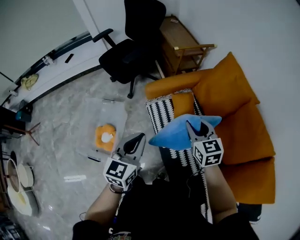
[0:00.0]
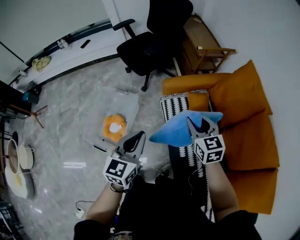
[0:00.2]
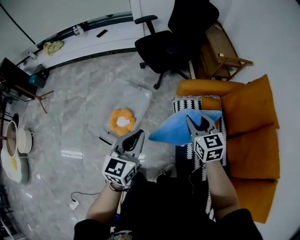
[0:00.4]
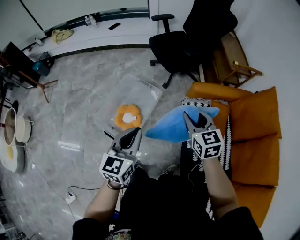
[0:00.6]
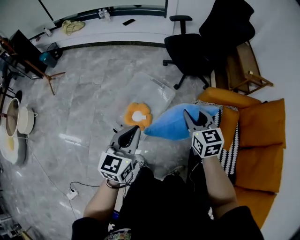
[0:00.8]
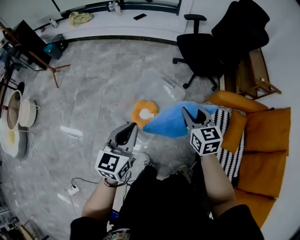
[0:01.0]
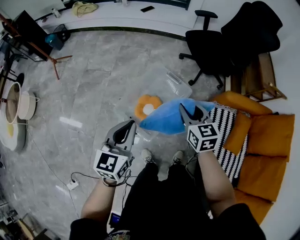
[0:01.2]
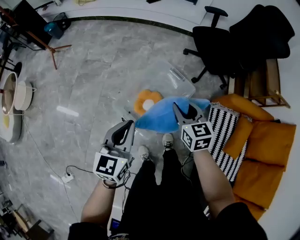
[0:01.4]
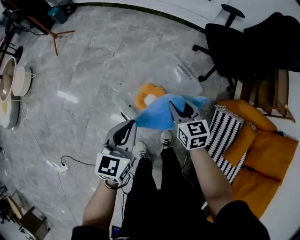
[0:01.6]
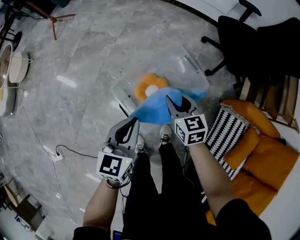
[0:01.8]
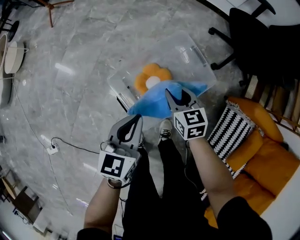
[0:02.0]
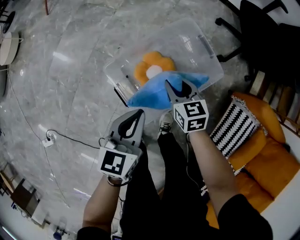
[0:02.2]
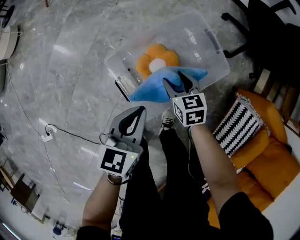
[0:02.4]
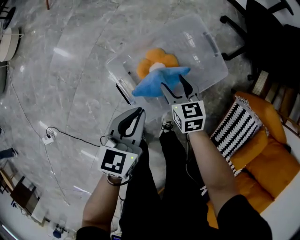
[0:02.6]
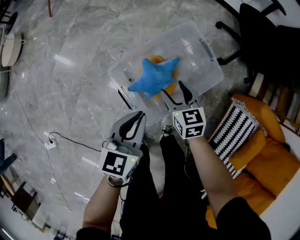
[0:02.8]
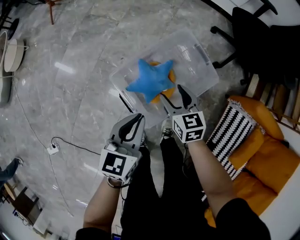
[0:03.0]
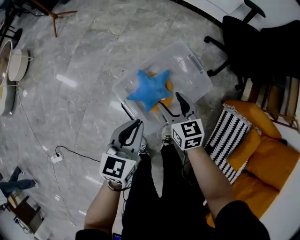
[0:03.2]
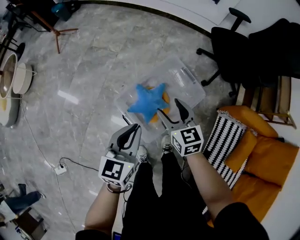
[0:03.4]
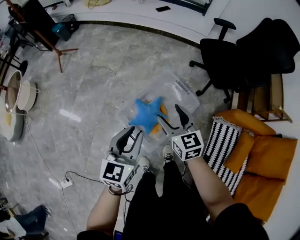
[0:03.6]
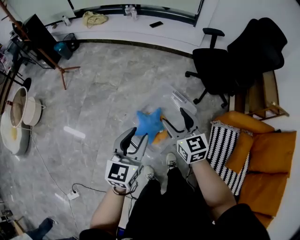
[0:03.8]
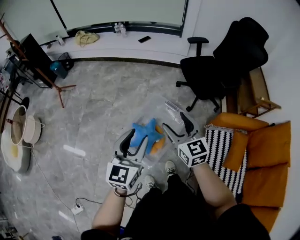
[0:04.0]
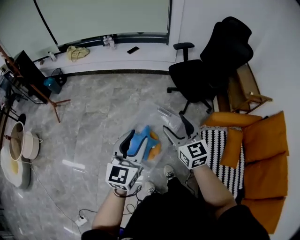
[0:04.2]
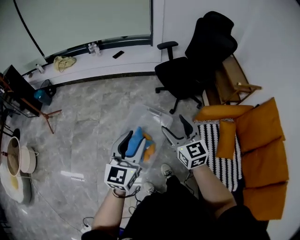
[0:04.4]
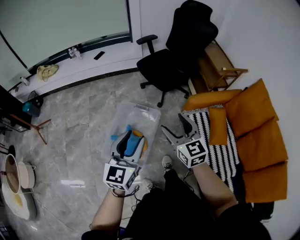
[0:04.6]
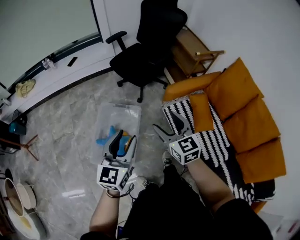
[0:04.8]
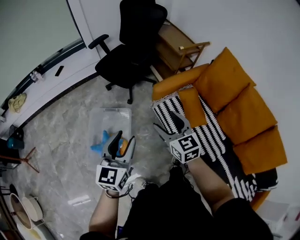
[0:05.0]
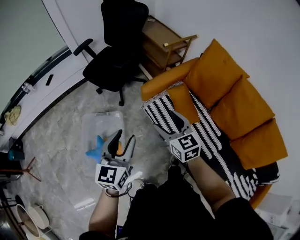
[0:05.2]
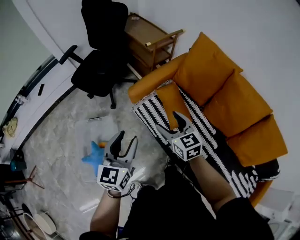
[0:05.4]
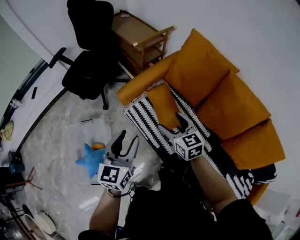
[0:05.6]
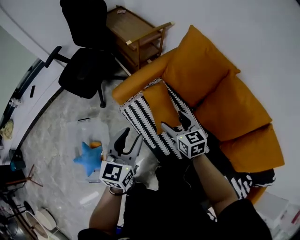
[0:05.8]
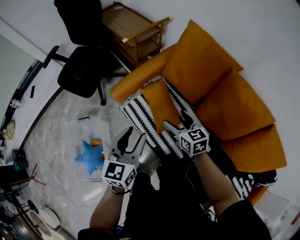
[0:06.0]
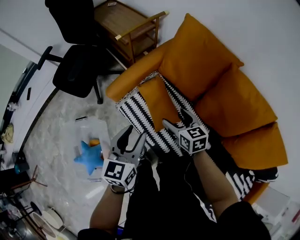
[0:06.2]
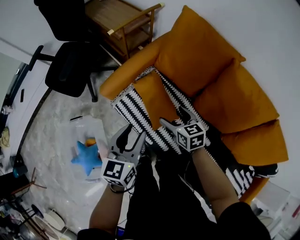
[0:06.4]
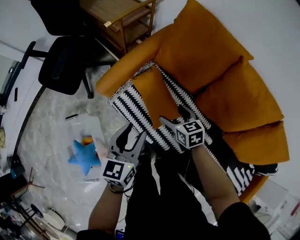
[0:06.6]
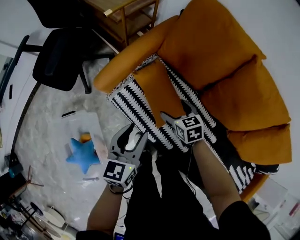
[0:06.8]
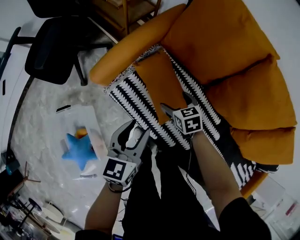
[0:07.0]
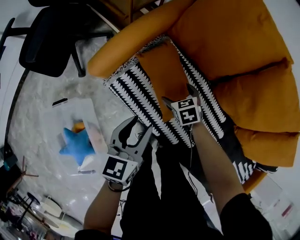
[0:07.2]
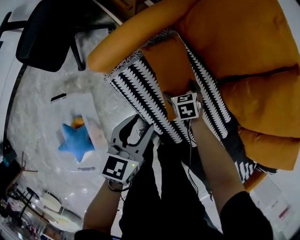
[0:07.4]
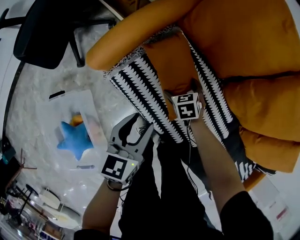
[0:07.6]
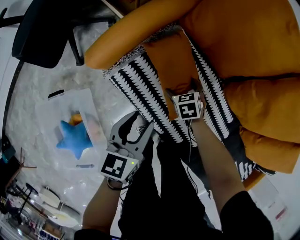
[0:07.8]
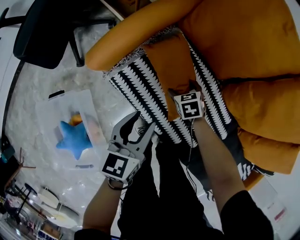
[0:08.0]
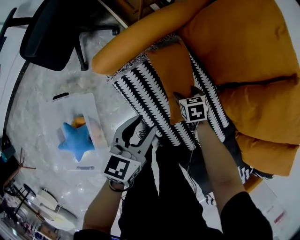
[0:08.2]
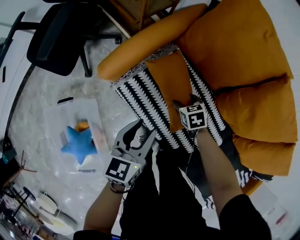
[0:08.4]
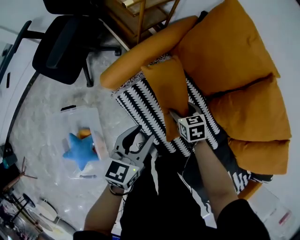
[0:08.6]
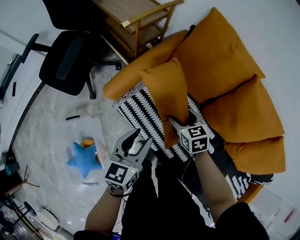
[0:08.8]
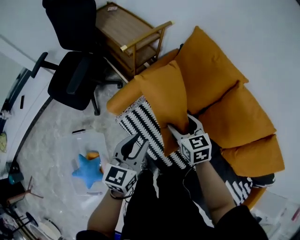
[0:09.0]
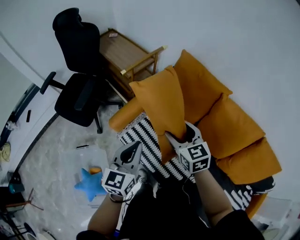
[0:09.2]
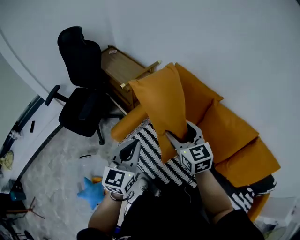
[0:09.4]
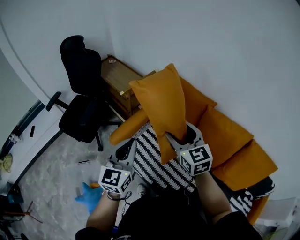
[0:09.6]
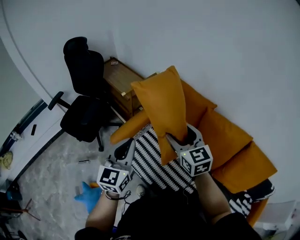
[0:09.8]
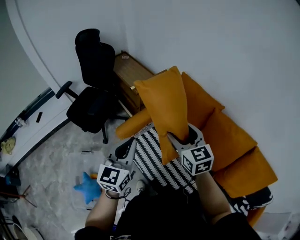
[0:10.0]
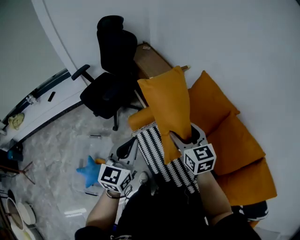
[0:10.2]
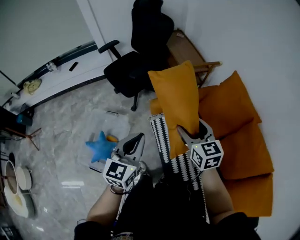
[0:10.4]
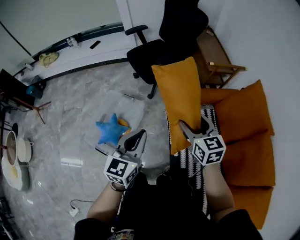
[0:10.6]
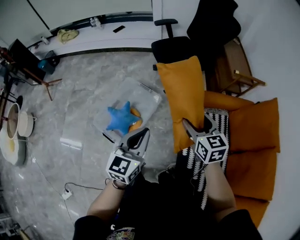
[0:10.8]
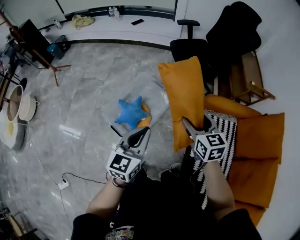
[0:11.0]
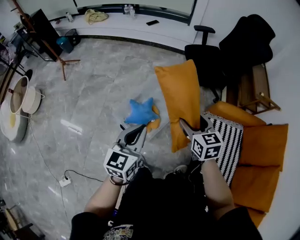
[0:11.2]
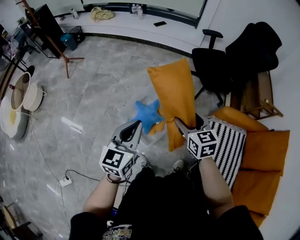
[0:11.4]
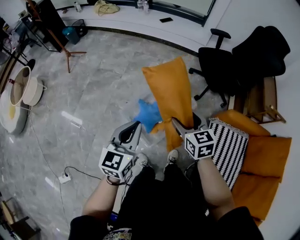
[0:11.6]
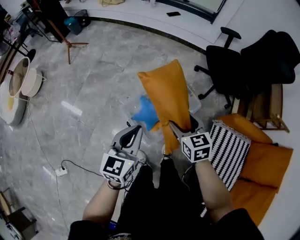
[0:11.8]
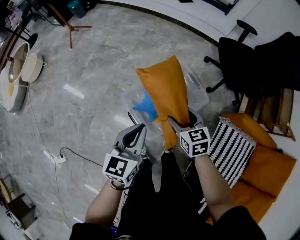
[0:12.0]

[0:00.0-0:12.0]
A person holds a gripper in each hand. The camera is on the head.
0:00.0 to 0:01.6: The pair of grippers is taken about 60 cm. The left gripper changes its angle by about 40 degrees; the right gripper rotates some 40 degrees.
0:01.6 to 0:03.0: Both grippers travel together downward, roughly 15 cm.
0:03.0 to 0:04.4: The right gripper travels upward and to the right by some 40 cm, and turns by some 40 degrees; the left gripper moves upward, about 35 cm, changes its angle by approximately 40 degrees, and opens its fingers.
0:04.4 to 0:06.0: The pair of grippers is taken approximately 60 cm. The left gripper turns by about 40 degrees, while the right gripper rotates roughly 50 degrees.
0:06.0 to 0:07.6: The two grippers go some 35 cm downward. The left gripper changes its angle by about 20 degrees, while the right gripper points its fingers roughly 40 degrees further downward.
0:07.6 to 0:09.0: The right gripper heads upward, covering some 35 cm, changes its angle by approximately 30 degrees, and closes up; the left gripper goes approximately 25 cm upward.
0:09.0 to 0:10.4: The left gripper shifts by roughly 20 cm, turns by about 30 degrees, and closes; the right gripper heads upward, covering some 20 cm, and changes its angle by about 30 degrees.
0:10.4 to 0:12.0: Both grippers are carried some 60 cm. The left gripper turns by about 50 degrees. The right gripper changes its angle by approximately 50 degrees.

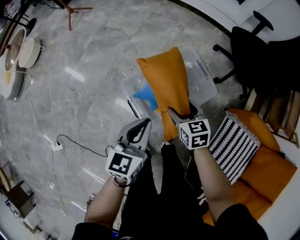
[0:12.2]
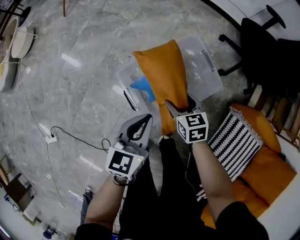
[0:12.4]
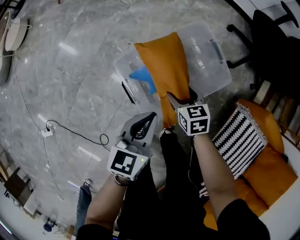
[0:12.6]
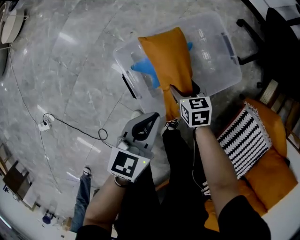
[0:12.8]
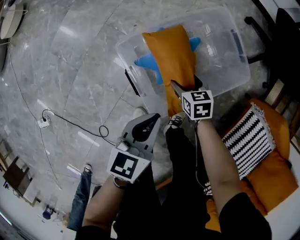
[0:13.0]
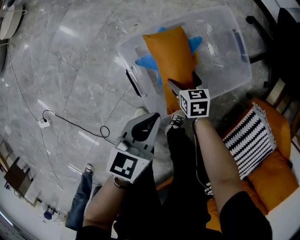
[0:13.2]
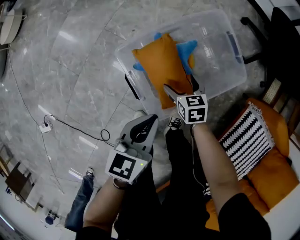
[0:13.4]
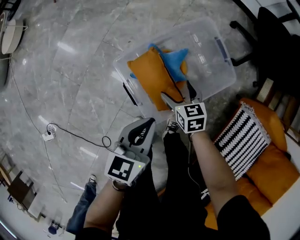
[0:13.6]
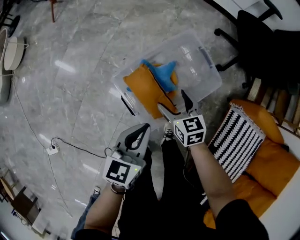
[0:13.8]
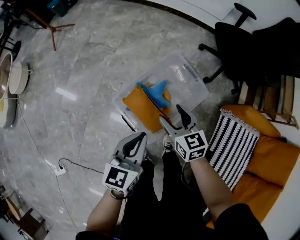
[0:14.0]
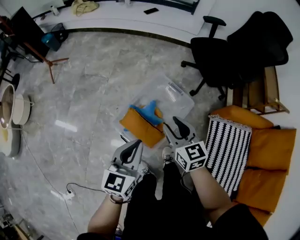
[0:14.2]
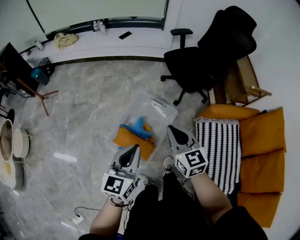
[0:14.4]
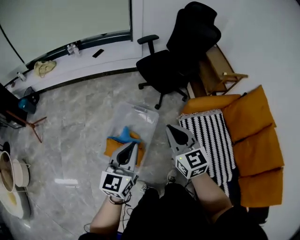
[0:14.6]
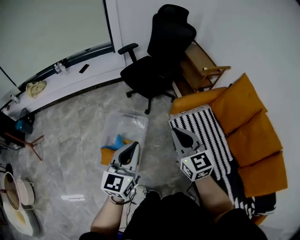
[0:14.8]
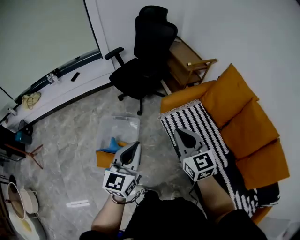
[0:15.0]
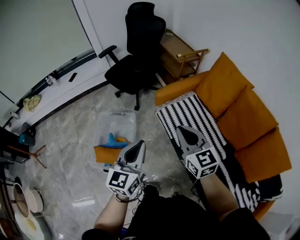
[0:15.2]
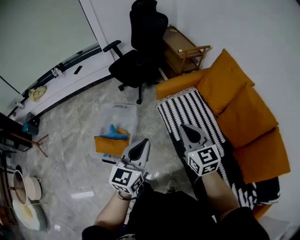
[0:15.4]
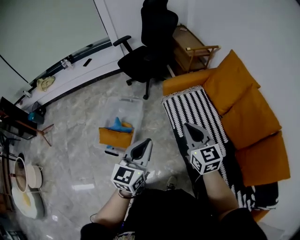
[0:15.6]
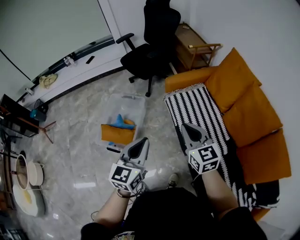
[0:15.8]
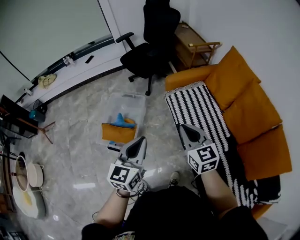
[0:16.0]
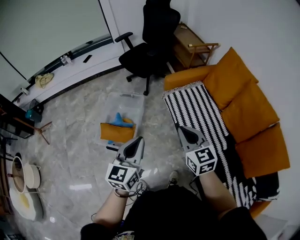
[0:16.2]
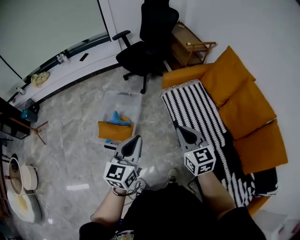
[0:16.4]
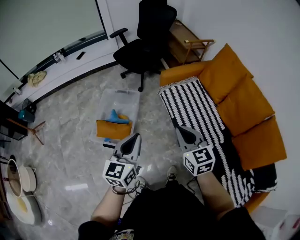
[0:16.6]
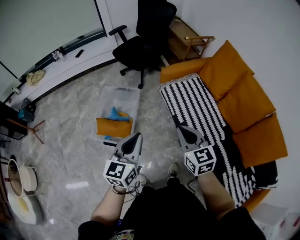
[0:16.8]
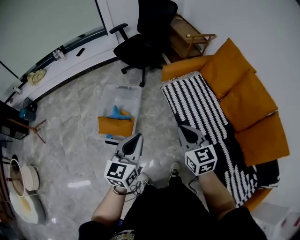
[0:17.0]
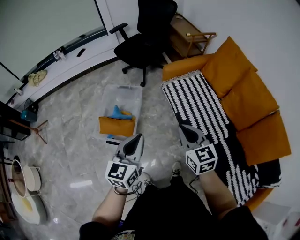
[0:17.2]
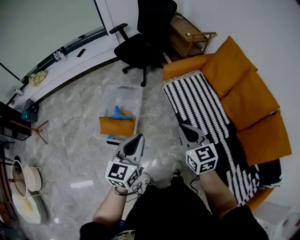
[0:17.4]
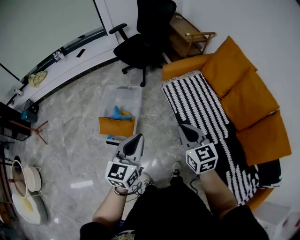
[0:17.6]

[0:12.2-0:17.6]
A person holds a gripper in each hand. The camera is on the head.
0:12.2 to 0:13.6: Both grippers move downward, roughly 20 cm.
0:13.6 to 0:15.0: The two grippers go roughly 50 cm upward. The left gripper turns by some 60 degrees. The right gripper angles its fingers upward, by some 40 degrees, and closes up.
0:15.0 to 0:16.2: The two grippers go roughly 20 cm backward.
0:16.2 to 0:17.6: There are only small adjustments of the grippers.

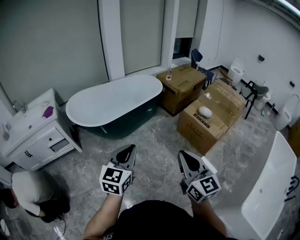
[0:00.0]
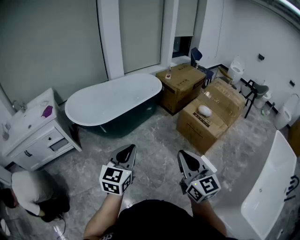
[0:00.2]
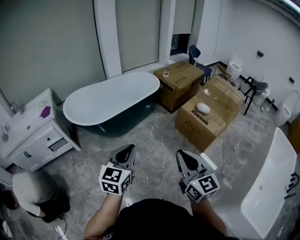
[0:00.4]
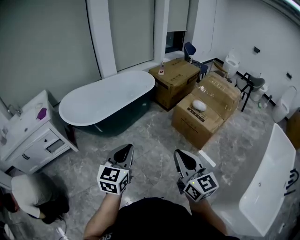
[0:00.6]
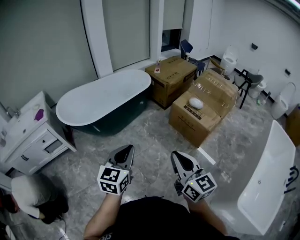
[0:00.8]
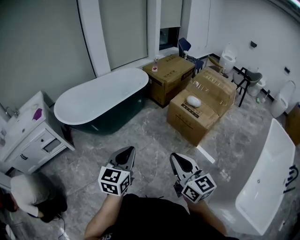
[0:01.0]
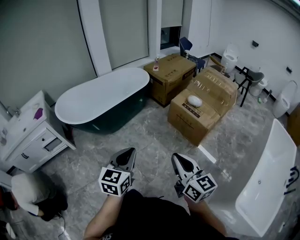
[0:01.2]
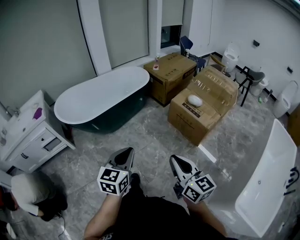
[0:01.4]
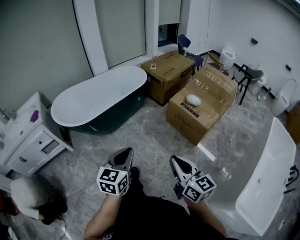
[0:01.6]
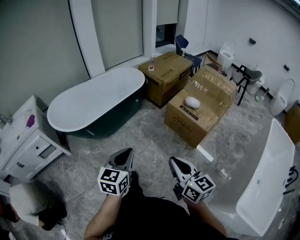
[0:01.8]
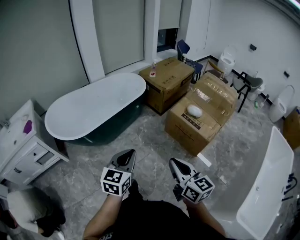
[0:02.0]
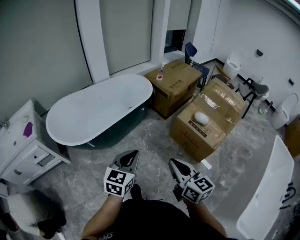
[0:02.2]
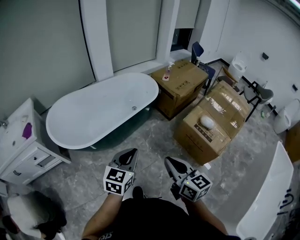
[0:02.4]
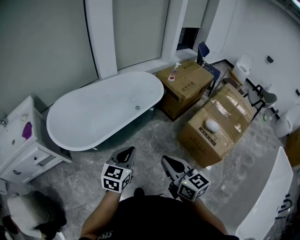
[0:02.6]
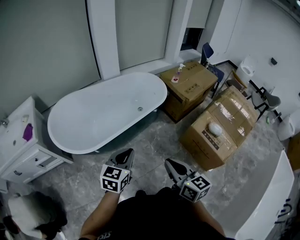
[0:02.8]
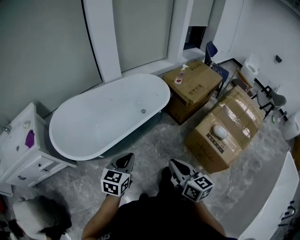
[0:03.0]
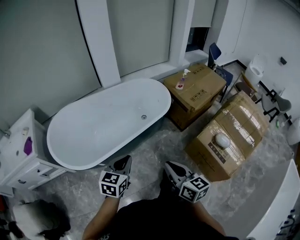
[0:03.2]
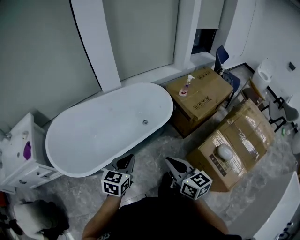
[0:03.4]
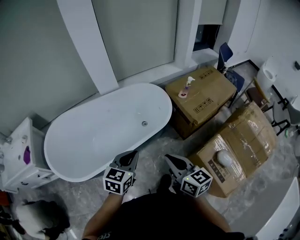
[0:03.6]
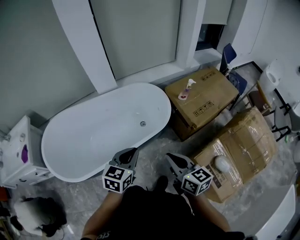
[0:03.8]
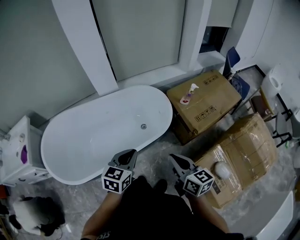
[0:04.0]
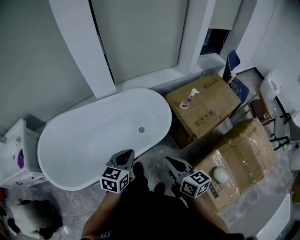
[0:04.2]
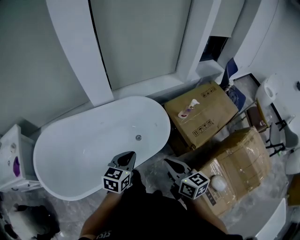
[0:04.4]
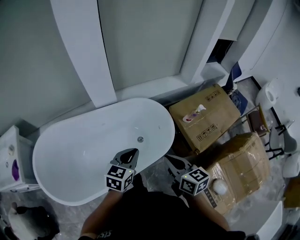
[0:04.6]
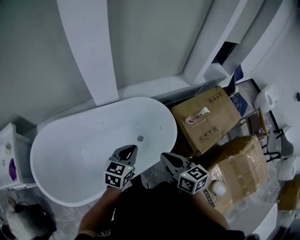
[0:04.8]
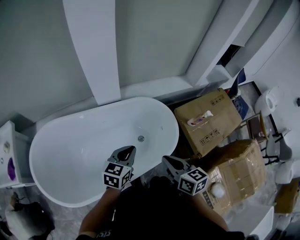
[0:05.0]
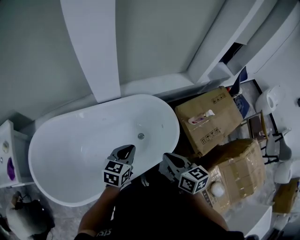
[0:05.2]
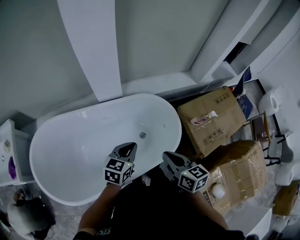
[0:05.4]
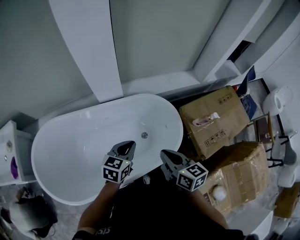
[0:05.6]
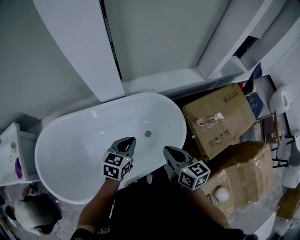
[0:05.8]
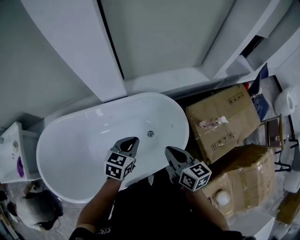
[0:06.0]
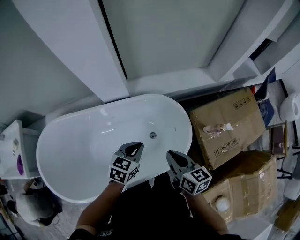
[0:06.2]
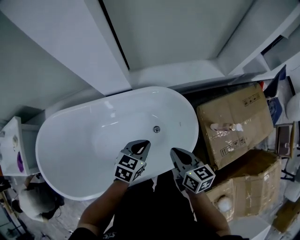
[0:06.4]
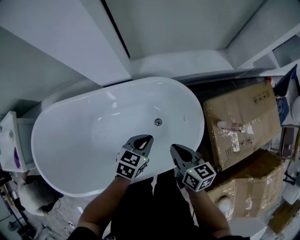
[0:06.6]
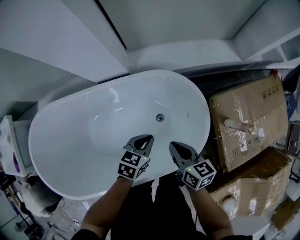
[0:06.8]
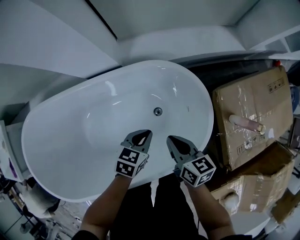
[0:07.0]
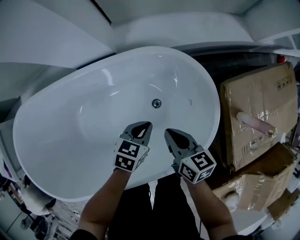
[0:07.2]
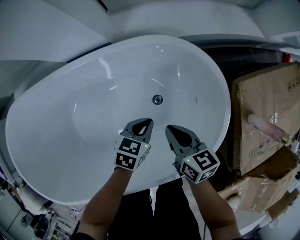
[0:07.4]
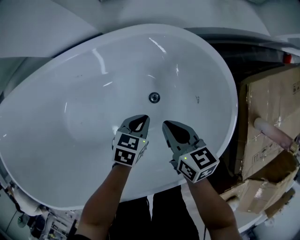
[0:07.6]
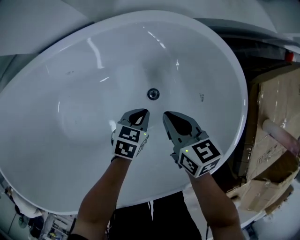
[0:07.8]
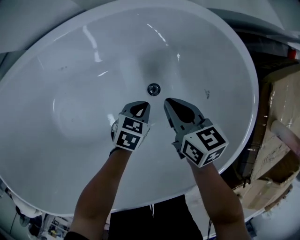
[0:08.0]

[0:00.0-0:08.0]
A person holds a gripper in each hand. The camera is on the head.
0:00.0 to 0:01.6: Both grippers move to the right and downward, about 15 cm.
0:01.6 to 0:03.2: The pair of grippers is taken forward, roughly 50 cm.
0:03.2 to 0:04.8: The two grippers travel together, forward, some 50 cm.
0:04.8 to 0:06.4: The two grippers go about 25 cm forward and downward.
0:06.4 to 0:08.0: Both grippers travel together downward, roughly 50 cm.
